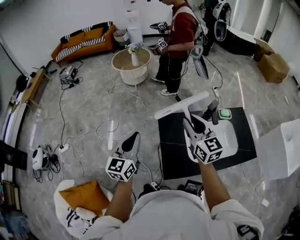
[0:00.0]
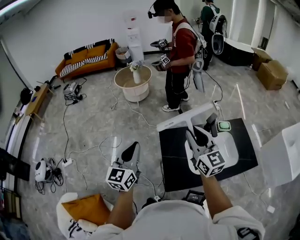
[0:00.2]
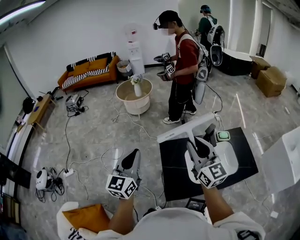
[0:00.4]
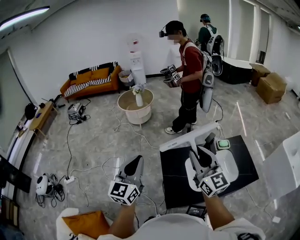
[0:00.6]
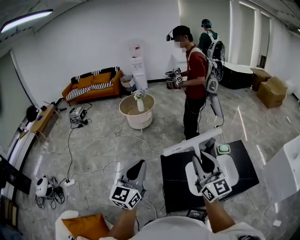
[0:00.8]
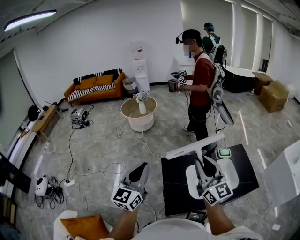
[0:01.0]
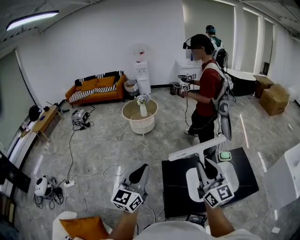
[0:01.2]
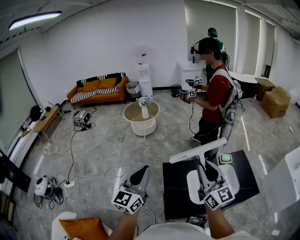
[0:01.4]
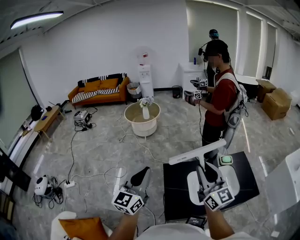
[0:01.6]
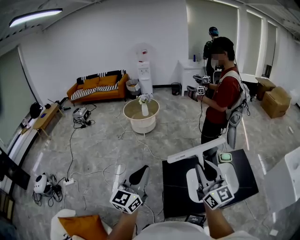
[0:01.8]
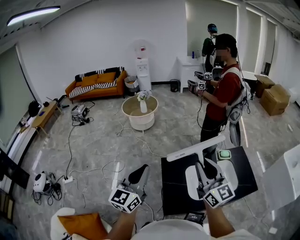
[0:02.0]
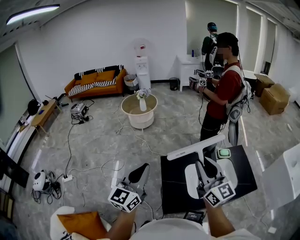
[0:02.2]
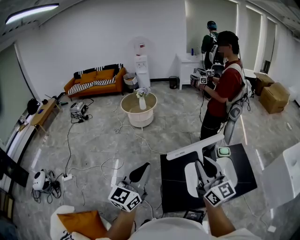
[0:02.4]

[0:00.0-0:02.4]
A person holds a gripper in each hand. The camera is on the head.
0:00.0 to 0:01.2: The left gripper travels upward by about 10 cm. Meanwhile the right gripper travels backward, upward and to the right by about 15 cm.
0:01.2 to 0:02.4: There are only small adjustments of the grippers.

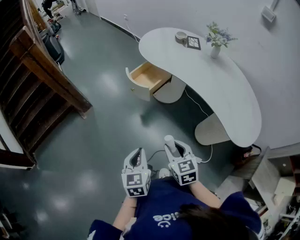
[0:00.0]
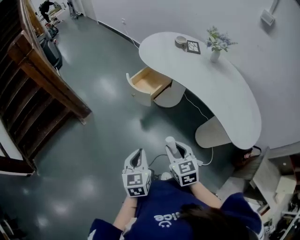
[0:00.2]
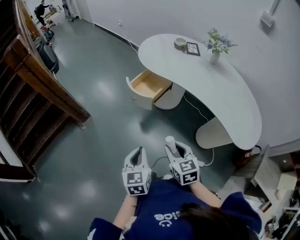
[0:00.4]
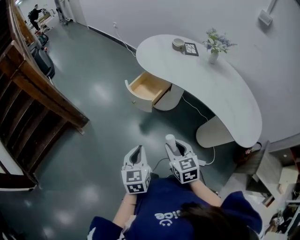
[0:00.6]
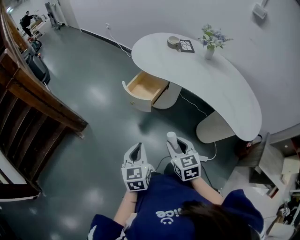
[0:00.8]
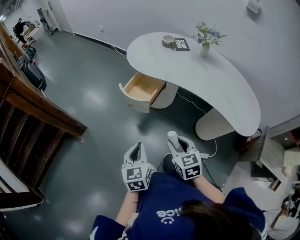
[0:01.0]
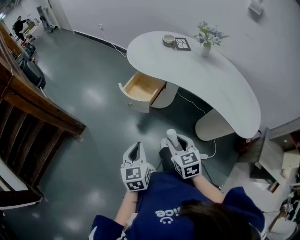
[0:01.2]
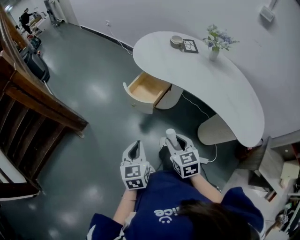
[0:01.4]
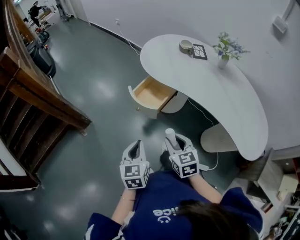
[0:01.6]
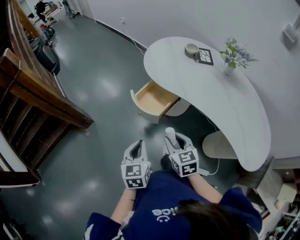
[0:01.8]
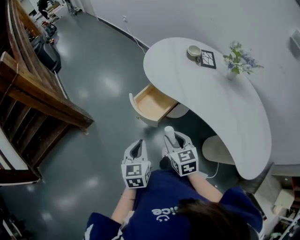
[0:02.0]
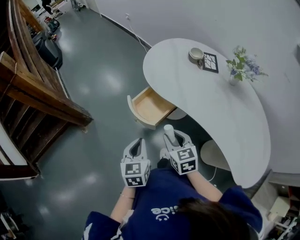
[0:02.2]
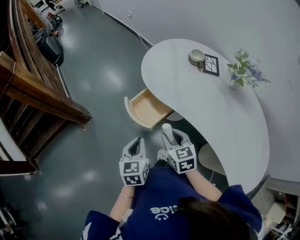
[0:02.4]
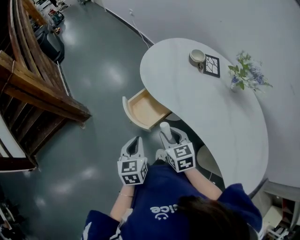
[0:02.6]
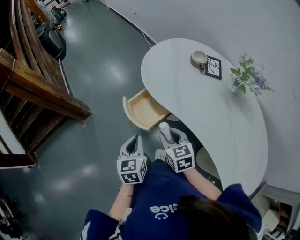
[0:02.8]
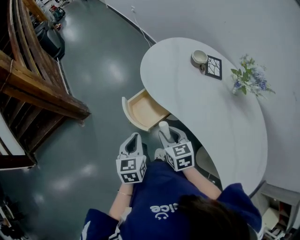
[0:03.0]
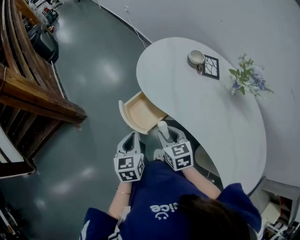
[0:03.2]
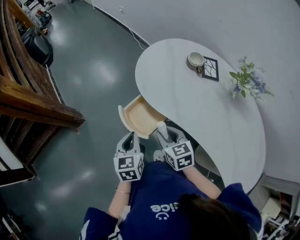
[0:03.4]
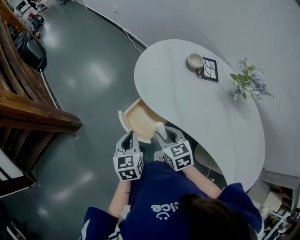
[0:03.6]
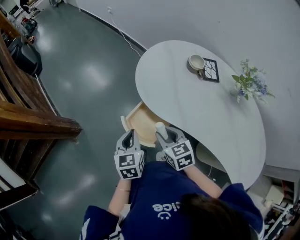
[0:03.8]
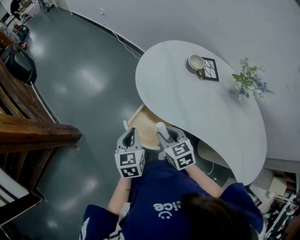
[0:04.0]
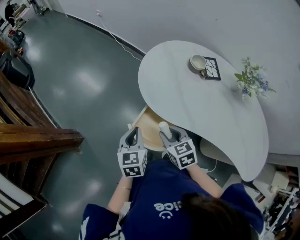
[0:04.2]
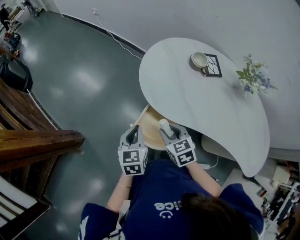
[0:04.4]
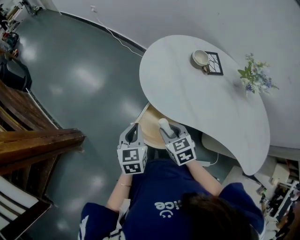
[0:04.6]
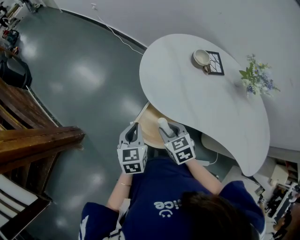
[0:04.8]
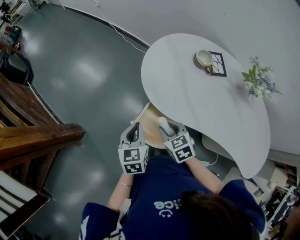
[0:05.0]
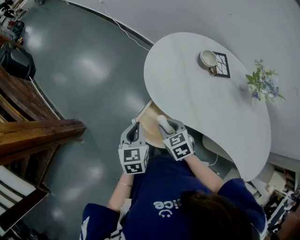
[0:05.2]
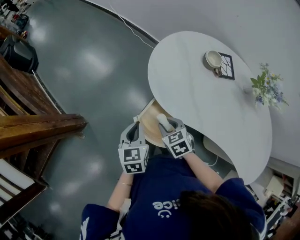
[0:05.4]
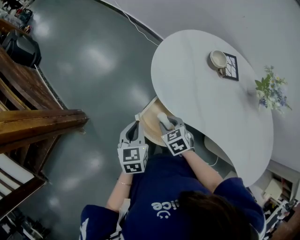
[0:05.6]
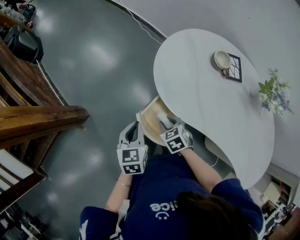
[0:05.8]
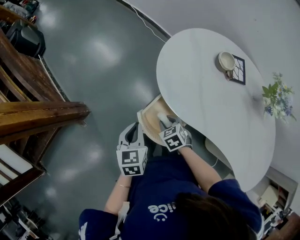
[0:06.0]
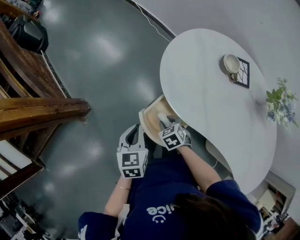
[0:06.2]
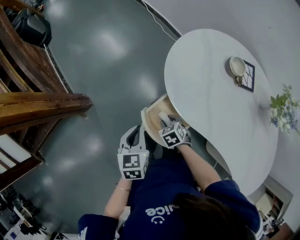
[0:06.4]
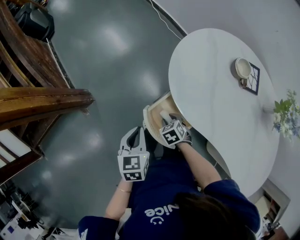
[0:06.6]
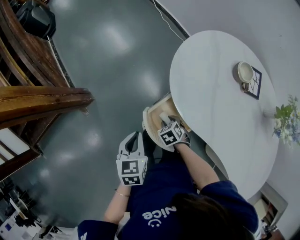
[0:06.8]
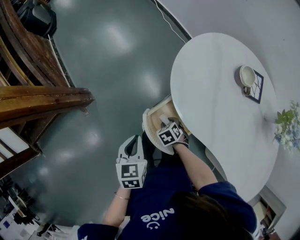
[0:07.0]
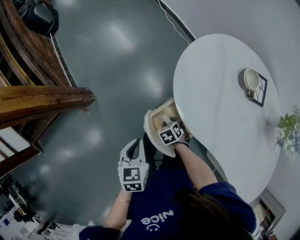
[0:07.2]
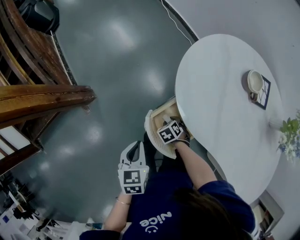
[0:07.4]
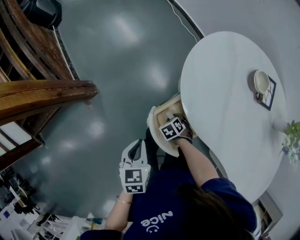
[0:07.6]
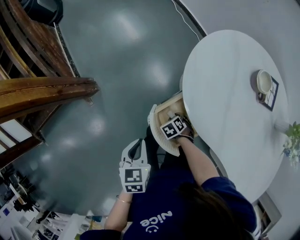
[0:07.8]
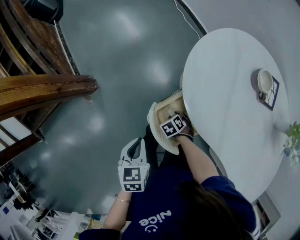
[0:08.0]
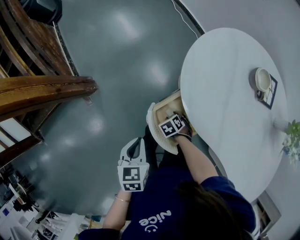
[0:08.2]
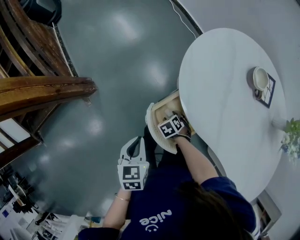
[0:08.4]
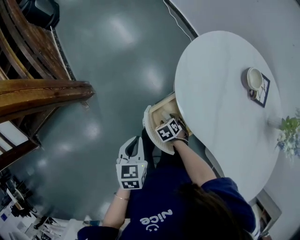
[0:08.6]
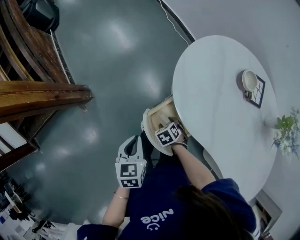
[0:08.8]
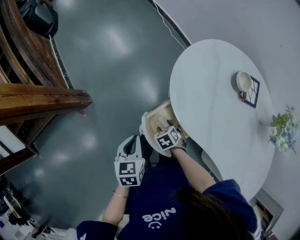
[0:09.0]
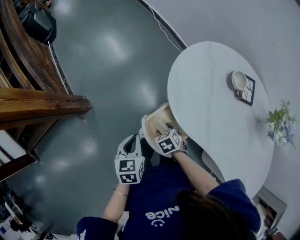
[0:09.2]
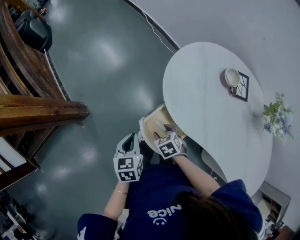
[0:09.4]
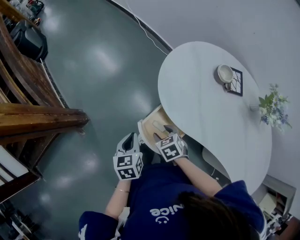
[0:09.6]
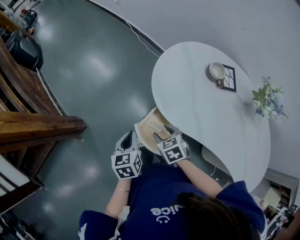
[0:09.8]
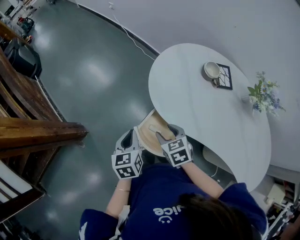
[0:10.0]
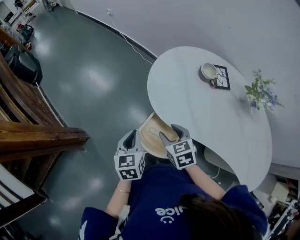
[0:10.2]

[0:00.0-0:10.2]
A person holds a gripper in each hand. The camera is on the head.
0:00.0 to 0:01.4: Both grippers travel together forward and to the left, roughly 15 cm.
0:01.4 to 0:03.0: The right gripper moves forward, approximately 25 cm; the left gripper goes about 25 cm forward and to the right.
0:03.0 to 0:04.4: The left gripper is displaced forward by some 20 cm, and turns by approximately 20 degrees; the right gripper travels forward and to the left by roughly 15 cm.
0:04.4 to 0:05.8: The right gripper goes roughly 10 cm downward.
0:05.8 to 0:07.2: The right gripper shifts about 15 cm downward; the left gripper shifts by roughly 5 cm.
0:07.2 to 0:08.8: The right gripper opens.
0:08.8 to 0:10.2: The right gripper shifts roughly 25 cm upward, and rotates approximately 40 degrees. The left gripper moves about 10 cm.

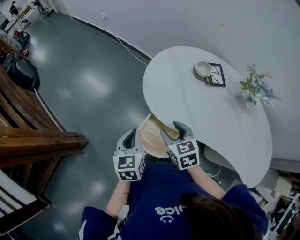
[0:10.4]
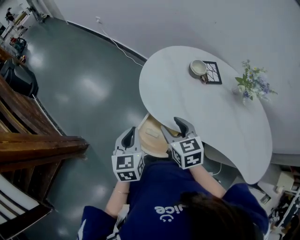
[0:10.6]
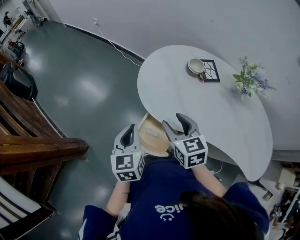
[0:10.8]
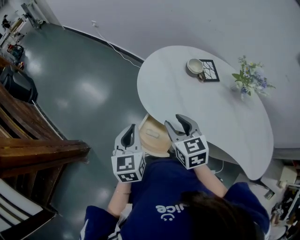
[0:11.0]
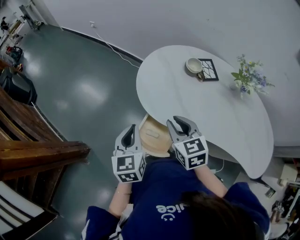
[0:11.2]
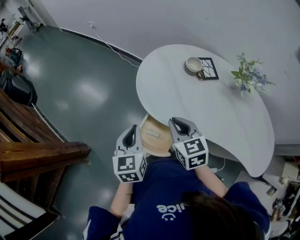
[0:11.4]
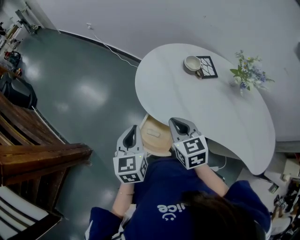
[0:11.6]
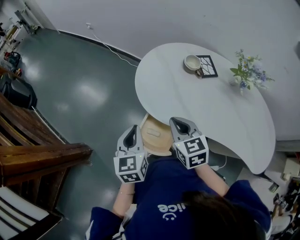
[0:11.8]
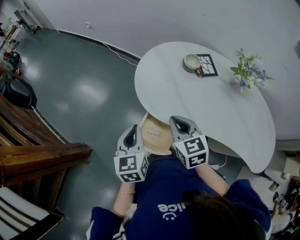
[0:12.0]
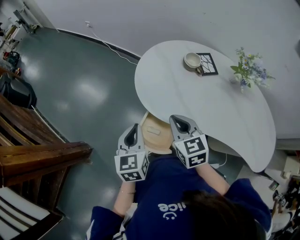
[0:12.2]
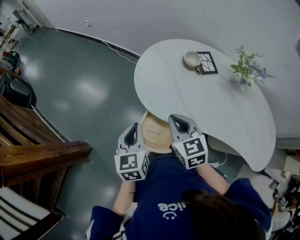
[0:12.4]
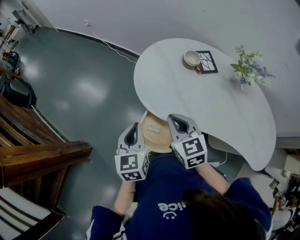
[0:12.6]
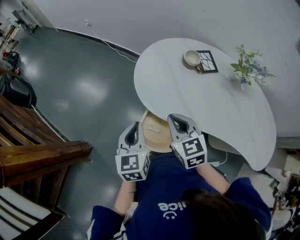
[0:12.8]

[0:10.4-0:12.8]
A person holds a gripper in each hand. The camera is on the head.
0:10.4 to 0:11.6: The right gripper shifts about 5 cm upward, and closes up. The left gripper changes place by approximately 5 cm.
0:11.6 to 0:12.8: There are only small adjustments of the grippers.

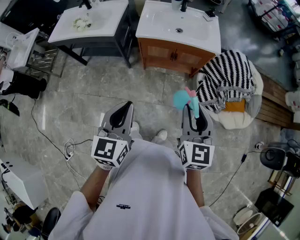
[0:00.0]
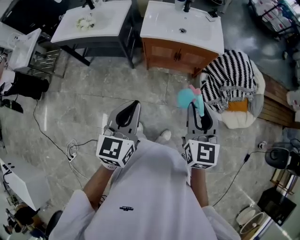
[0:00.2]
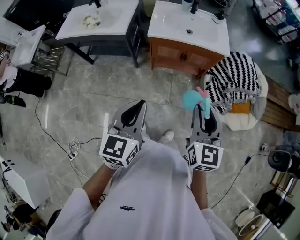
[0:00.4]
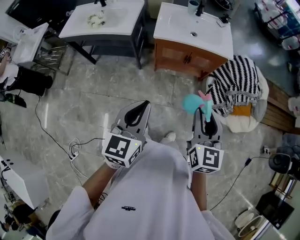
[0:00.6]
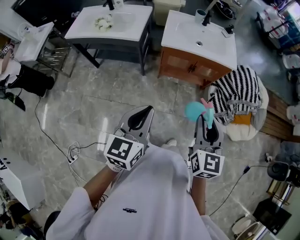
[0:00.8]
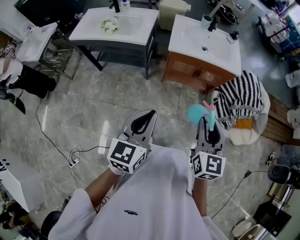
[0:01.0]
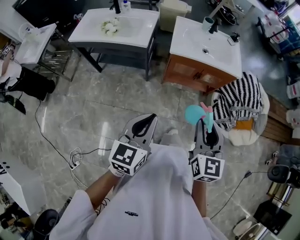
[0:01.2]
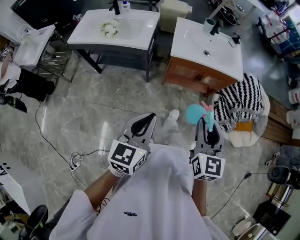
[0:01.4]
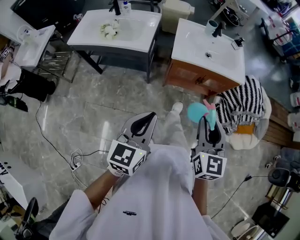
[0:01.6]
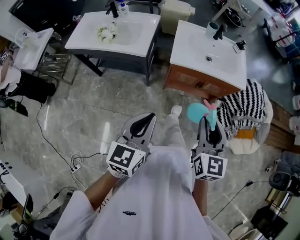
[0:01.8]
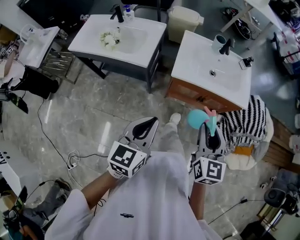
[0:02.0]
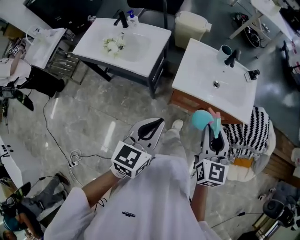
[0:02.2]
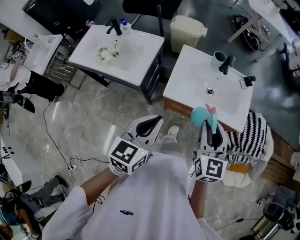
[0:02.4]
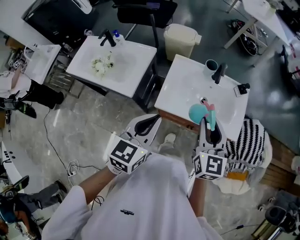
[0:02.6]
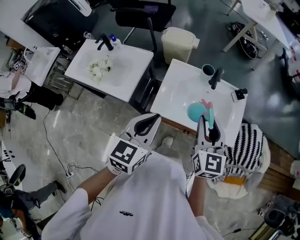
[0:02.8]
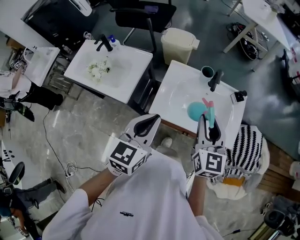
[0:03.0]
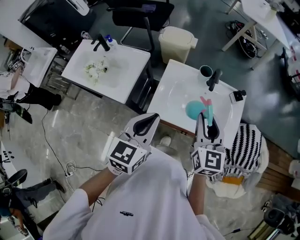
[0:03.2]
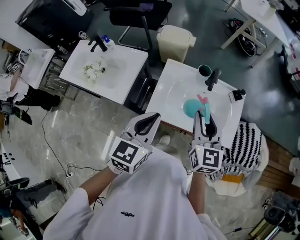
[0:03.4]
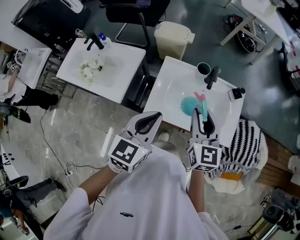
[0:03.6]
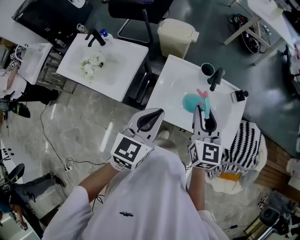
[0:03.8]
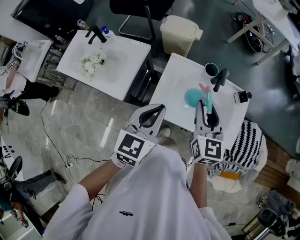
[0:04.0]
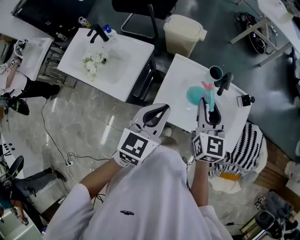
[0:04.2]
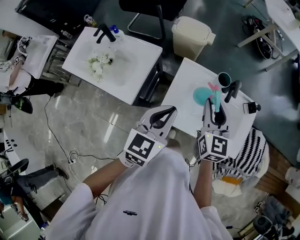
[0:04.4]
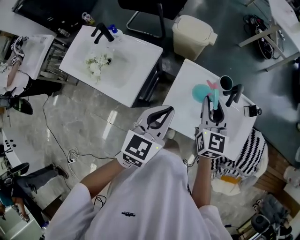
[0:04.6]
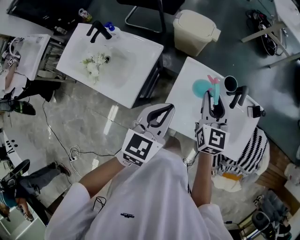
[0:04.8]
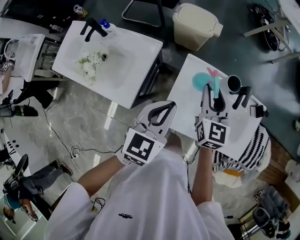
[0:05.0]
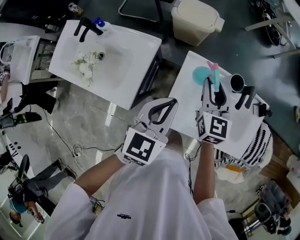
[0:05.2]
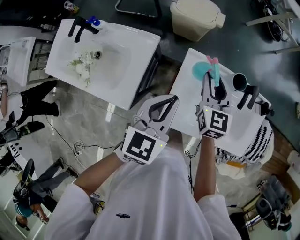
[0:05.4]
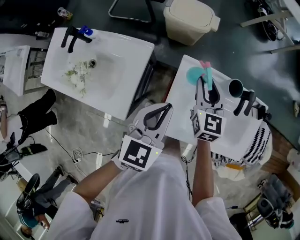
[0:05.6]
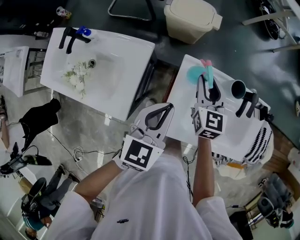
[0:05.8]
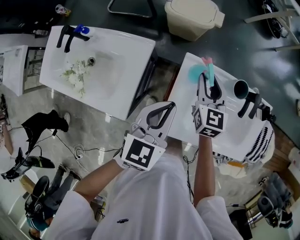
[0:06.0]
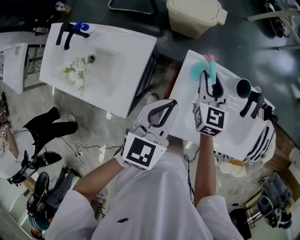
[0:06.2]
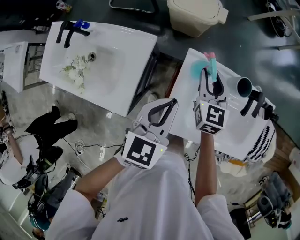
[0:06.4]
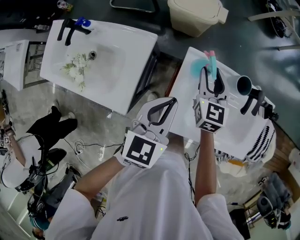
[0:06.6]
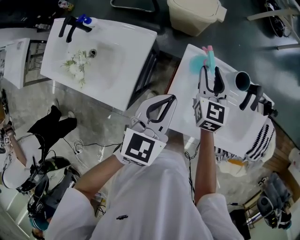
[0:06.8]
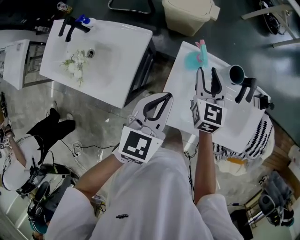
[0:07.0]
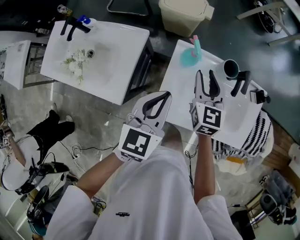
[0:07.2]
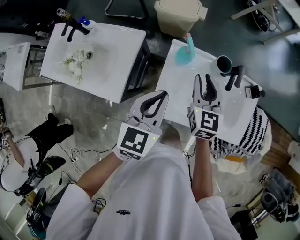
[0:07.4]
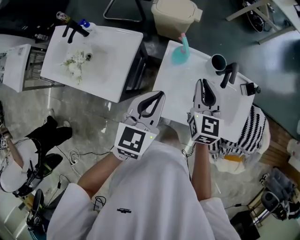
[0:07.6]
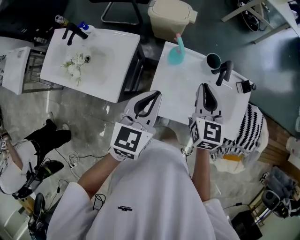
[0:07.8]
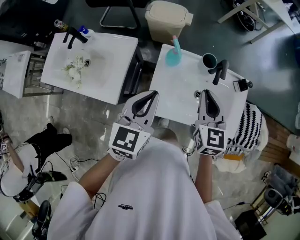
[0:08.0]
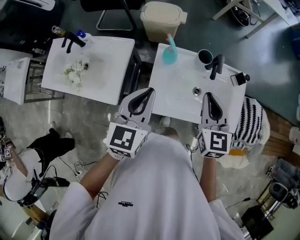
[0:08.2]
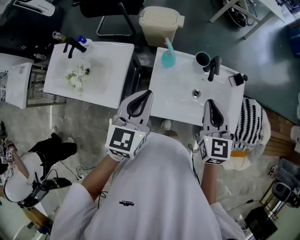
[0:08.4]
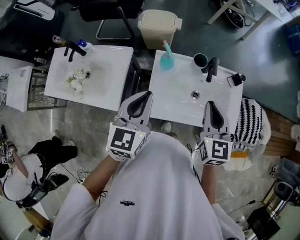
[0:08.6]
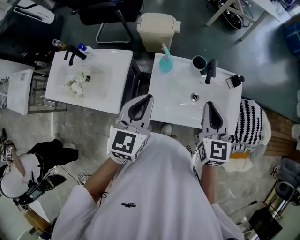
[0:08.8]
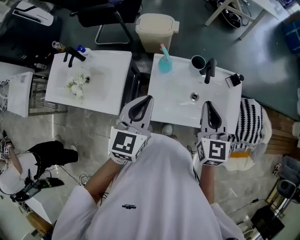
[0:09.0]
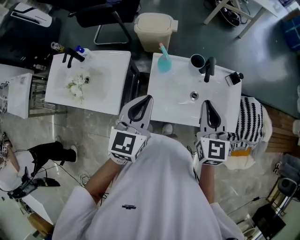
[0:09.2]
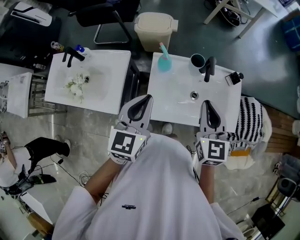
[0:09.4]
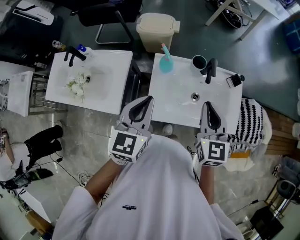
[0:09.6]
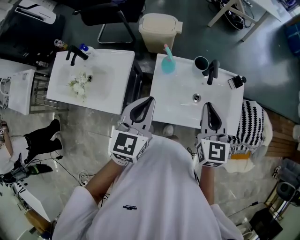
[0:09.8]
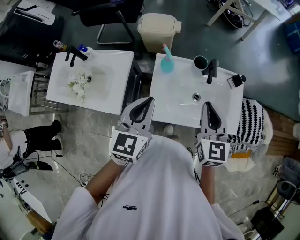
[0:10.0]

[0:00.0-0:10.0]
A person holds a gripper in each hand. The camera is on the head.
0:00.0 to 0:01.4: The grippers both shift to the left by roughly 15 cm.
0:01.4 to 0:02.8: The pair of grippers is taken forward, approximately 40 cm.
0:02.8 to 0:04.2: The two grippers go some 15 cm forward.
0:04.2 to 0:05.8: The grippers both shift forward, downward and to the left by some 25 cm.
0:05.8 to 0:07.2: The right gripper shifts some 5 cm backward; the left gripper shifts by approximately 5 cm.
0:07.2 to 0:08.6: The right gripper goes some 25 cm backward, upward and to the right, and closes its fingers, while the left gripper moves upward and backward, approximately 10 cm.
0:08.6 to 0:10.0: Both grippers stay about where they are.
